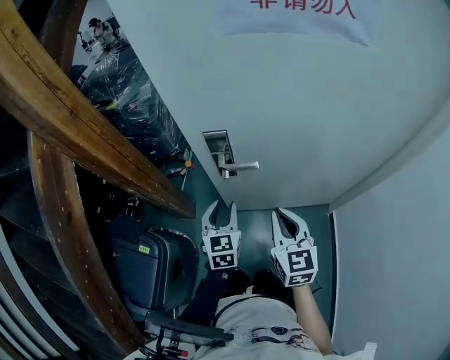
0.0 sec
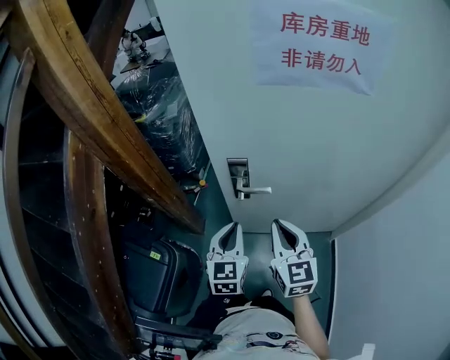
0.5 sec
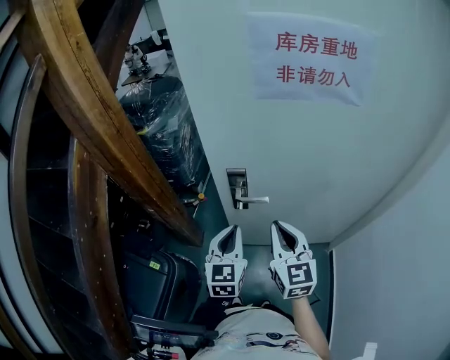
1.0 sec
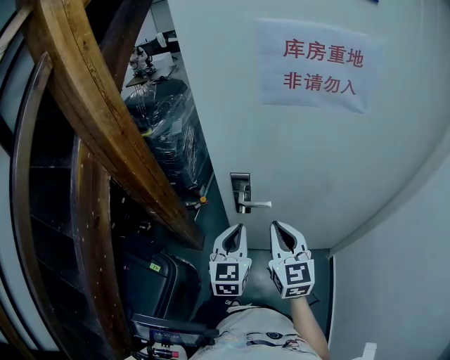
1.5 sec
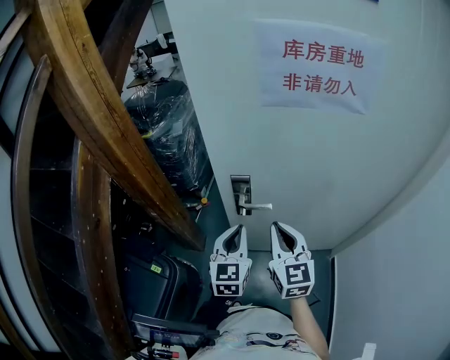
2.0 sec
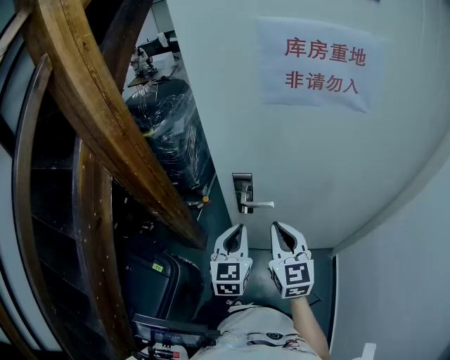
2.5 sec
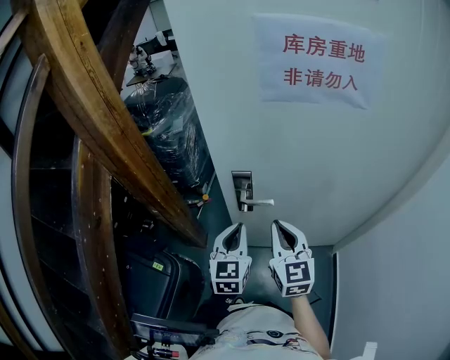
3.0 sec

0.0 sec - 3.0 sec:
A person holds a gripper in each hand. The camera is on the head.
0.0 sec - 1.5 sec: The grippers both shift upward by approximately 15 cm. The left gripper closes up.
1.5 sec - 3.0 sec: Neither gripper changes place.

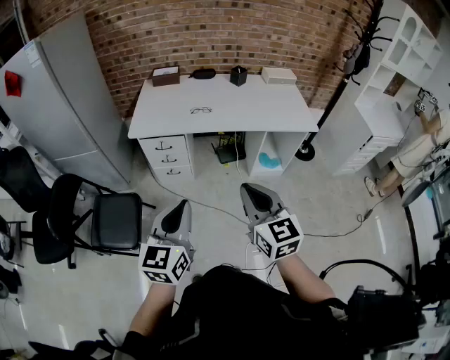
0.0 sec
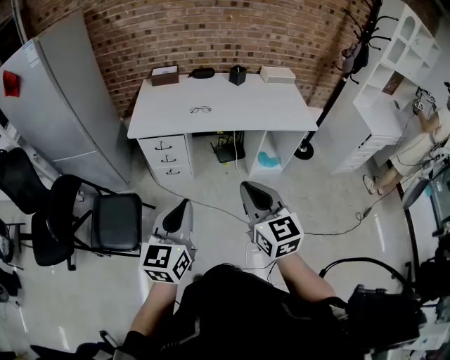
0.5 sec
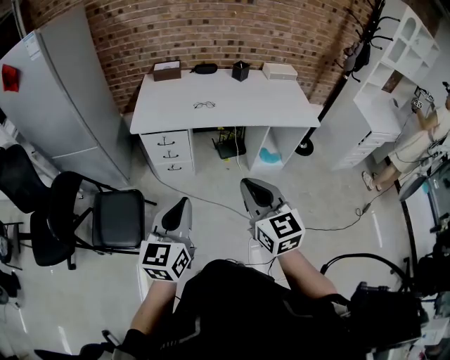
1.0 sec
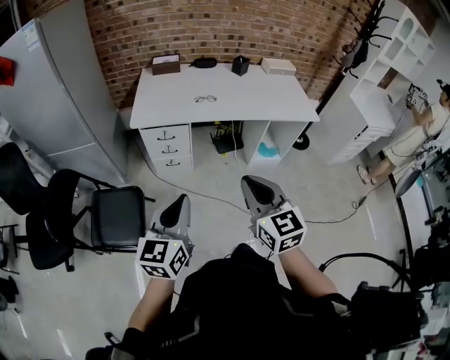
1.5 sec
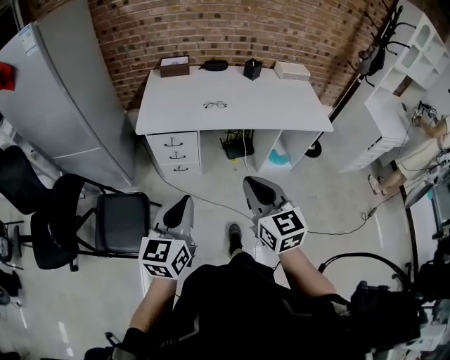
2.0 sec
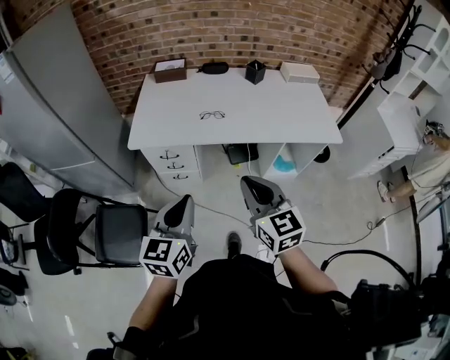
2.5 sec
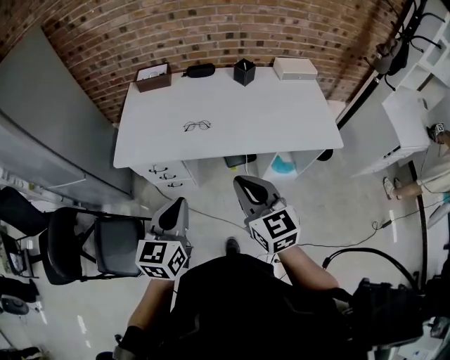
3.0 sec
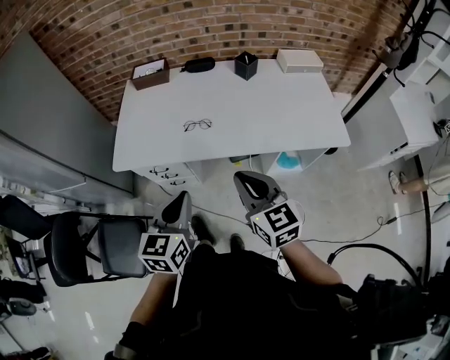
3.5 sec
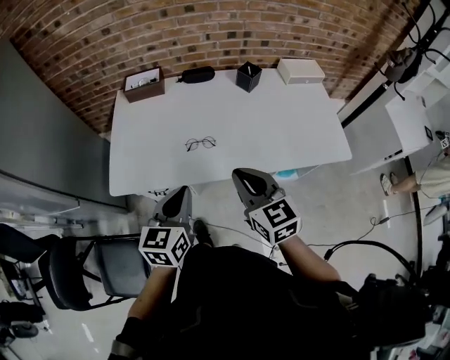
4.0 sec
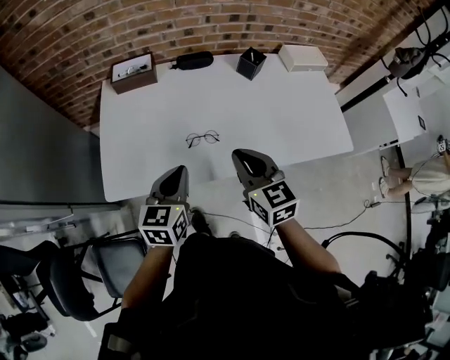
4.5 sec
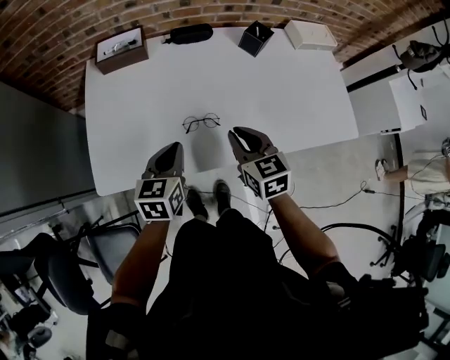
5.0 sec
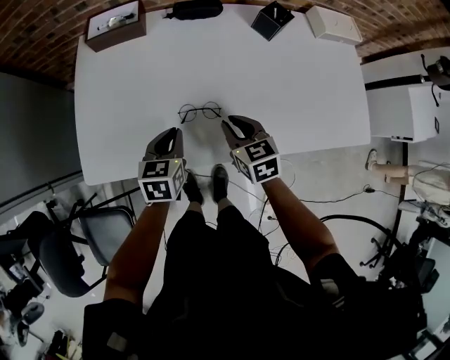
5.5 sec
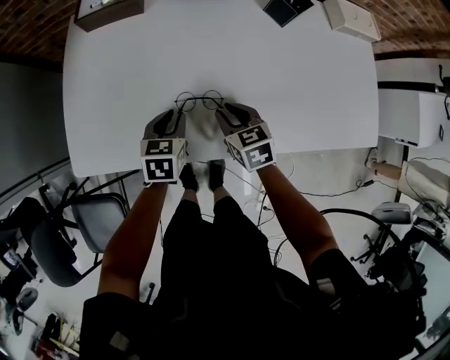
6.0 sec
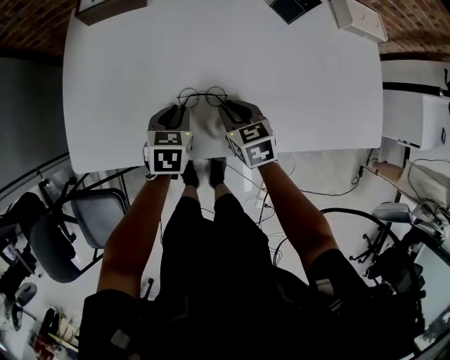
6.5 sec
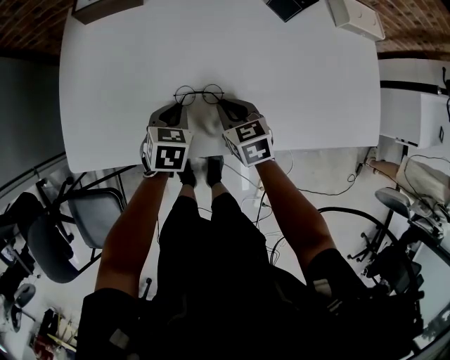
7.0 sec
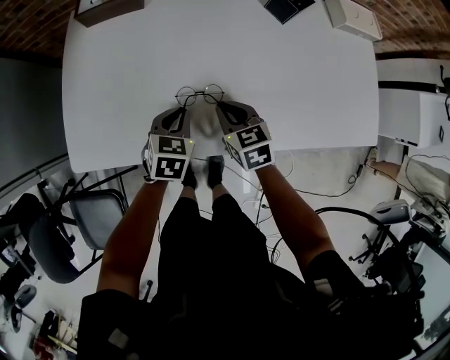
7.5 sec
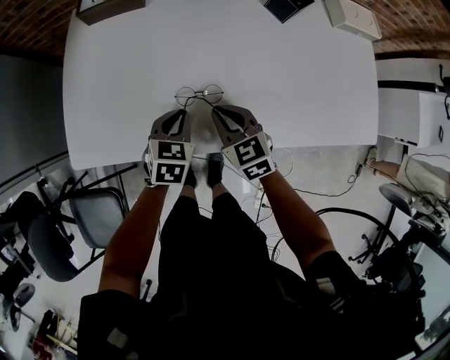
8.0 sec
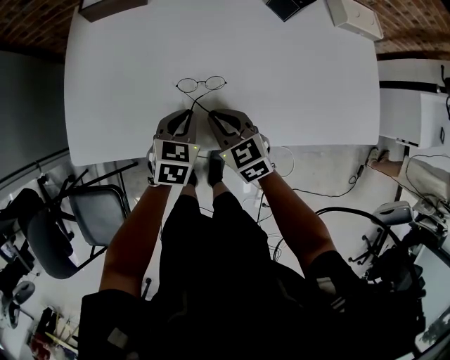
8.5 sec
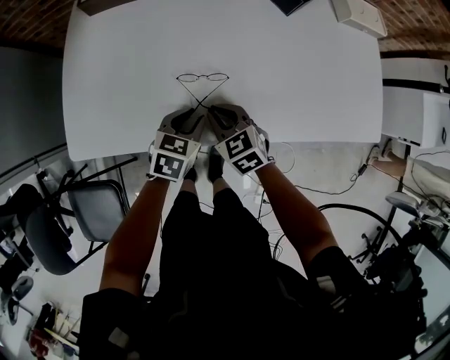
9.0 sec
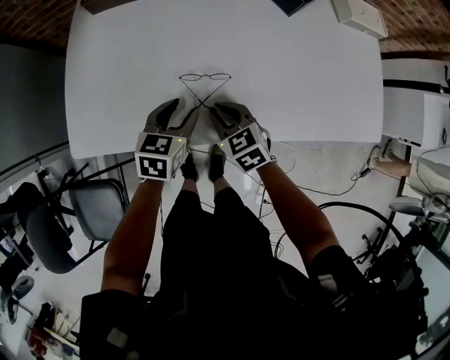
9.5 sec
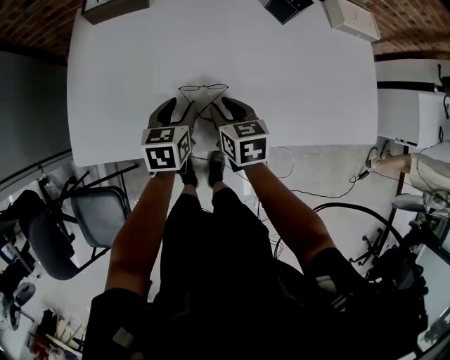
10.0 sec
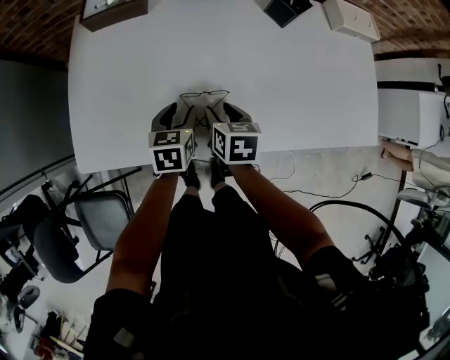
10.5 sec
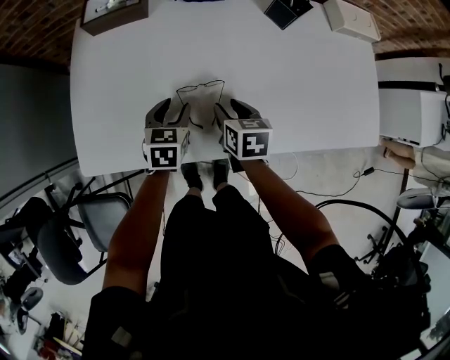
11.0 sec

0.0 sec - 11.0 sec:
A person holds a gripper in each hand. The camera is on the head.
0.0 sec - 2.0 sec: Both grippers move to the left and forward, approximately 10 cm.
2.0 sec - 3.5 sec: Both grippers travel together forward and to the right, about 30 cm.
3.5 sec - 5.5 sec: Both grippers travel together forward and downward, roughly 35 cm. The right gripper changes its angle by some 30 degrees, while the left gripper rotates about 20 degrees.
5.5 sec - 7.5 sec: Both grippers travel together downward, about 5 cm.
7.5 sec - 9.0 sec: The left gripper shifts by roughly 5 cm. The right gripper moves roughly 5 cm.
9.0 sec - 11.0 sec: The right gripper goes approximately 5 cm forward, turns by approximately 40 degrees, and opens up, while the left gripper moves forward and to the left, some 10 cm, and opens its fingers.

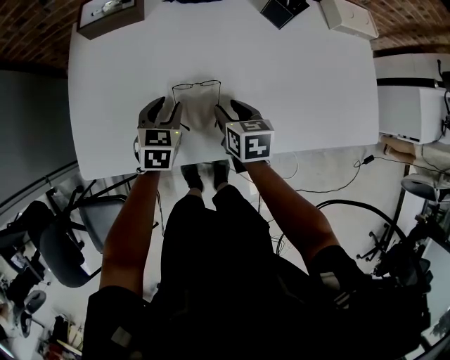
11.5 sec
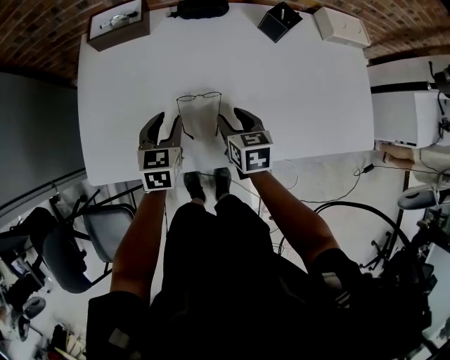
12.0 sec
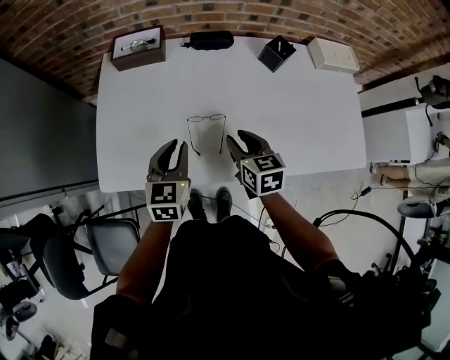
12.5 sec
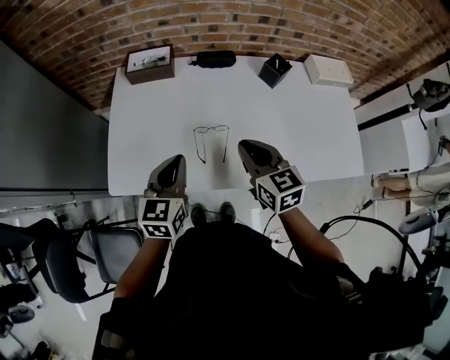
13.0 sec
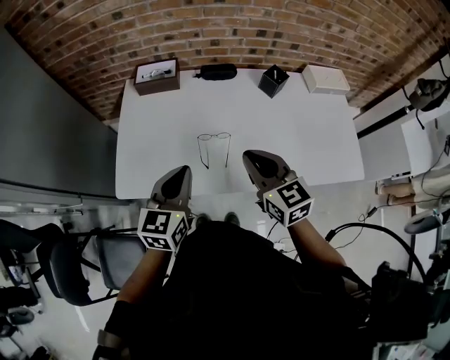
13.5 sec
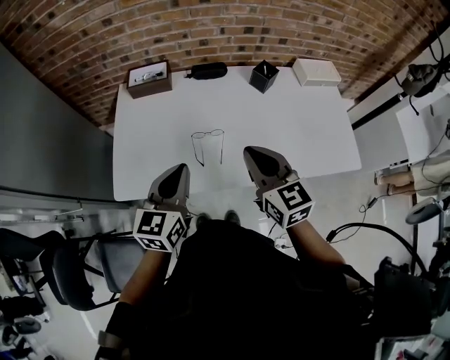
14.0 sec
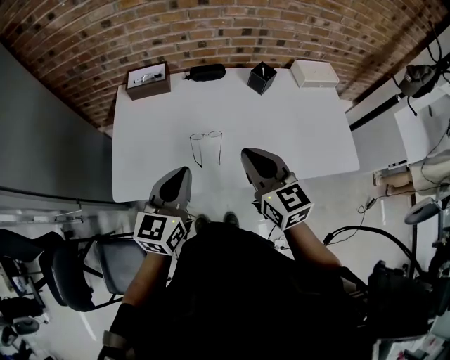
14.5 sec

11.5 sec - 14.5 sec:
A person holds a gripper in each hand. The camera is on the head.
11.5 sec - 13.0 sec: The right gripper moves upward, roughly 20 cm, swivels about 30 degrees, and closes up; the left gripper heads upward and backward, covering some 25 cm, rotates some 30 degrees, and closes its fingers.
13.0 sec - 14.5 sec: The two grippers go some 10 cm upward and backward.

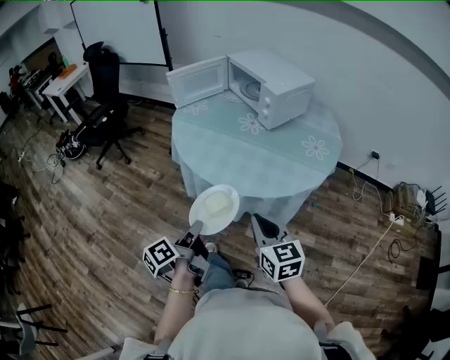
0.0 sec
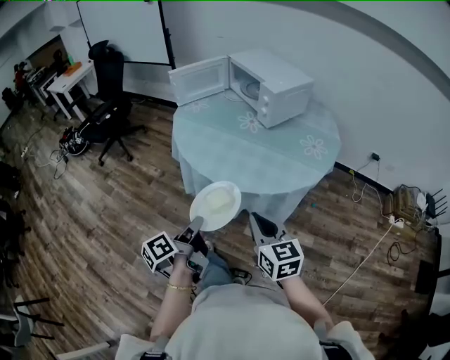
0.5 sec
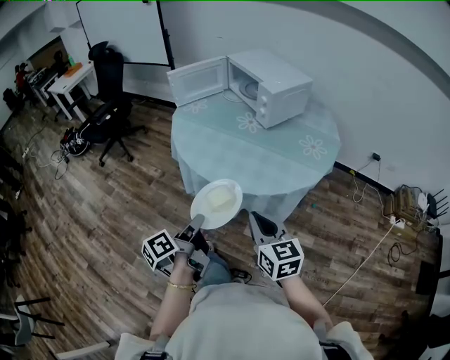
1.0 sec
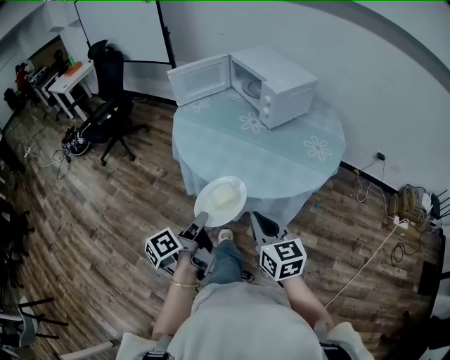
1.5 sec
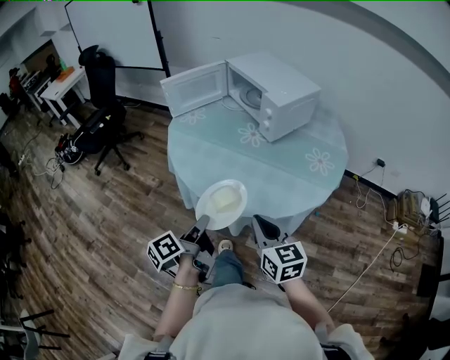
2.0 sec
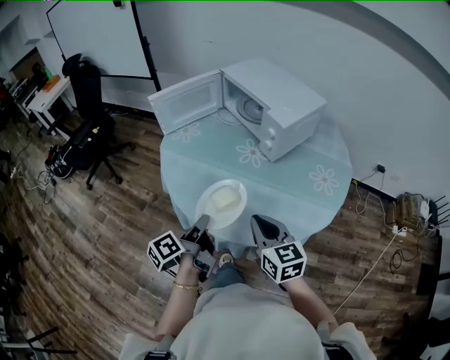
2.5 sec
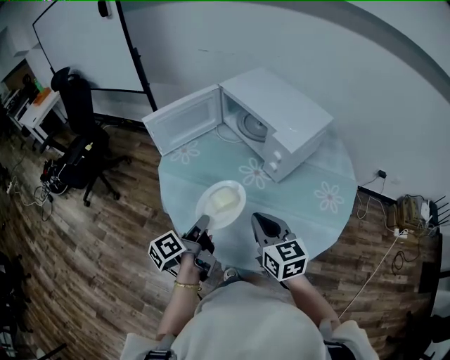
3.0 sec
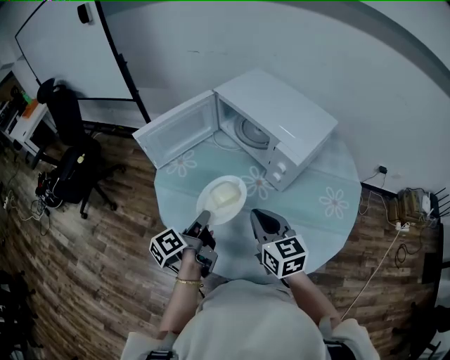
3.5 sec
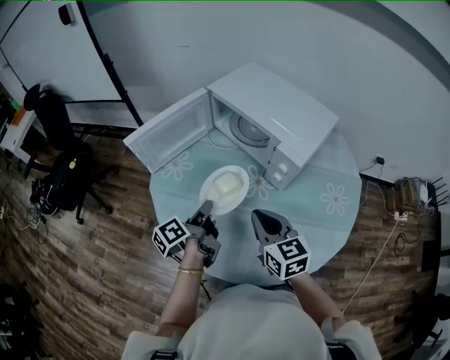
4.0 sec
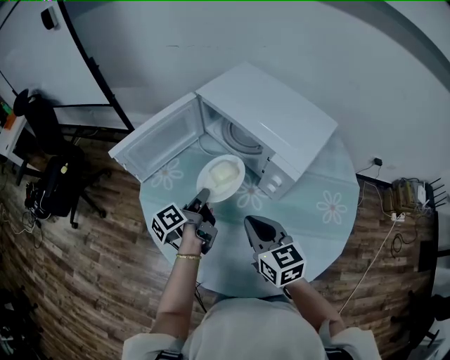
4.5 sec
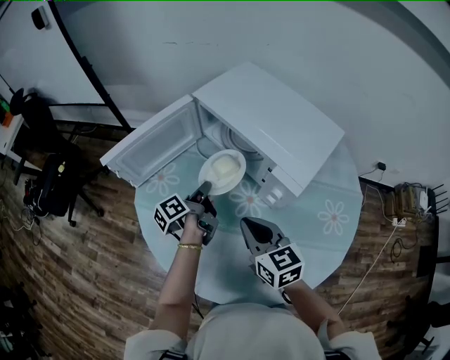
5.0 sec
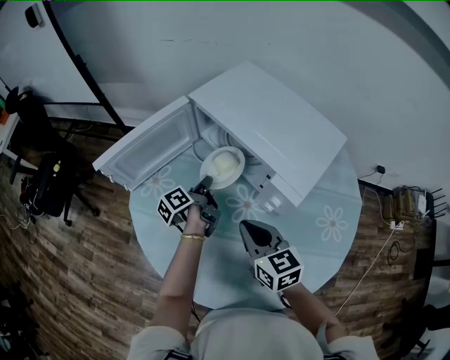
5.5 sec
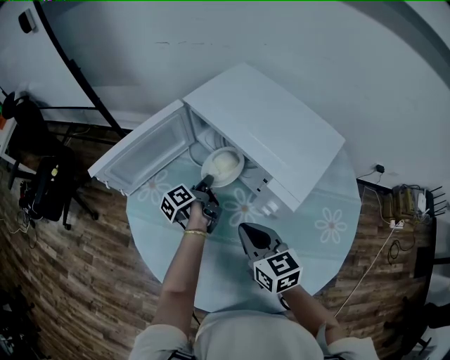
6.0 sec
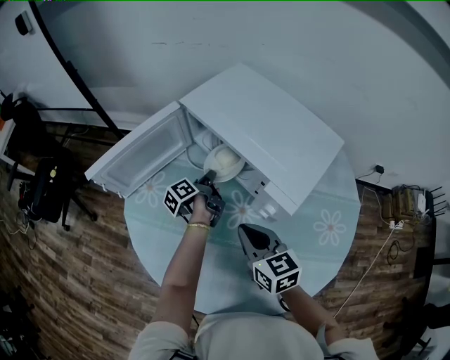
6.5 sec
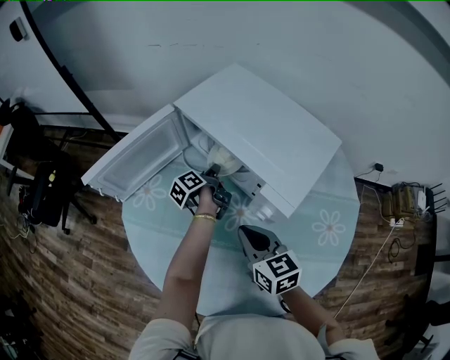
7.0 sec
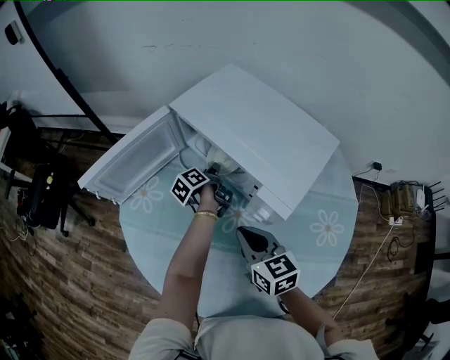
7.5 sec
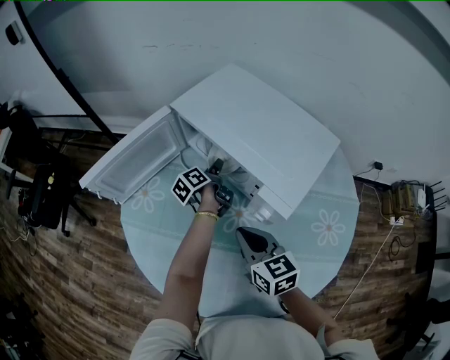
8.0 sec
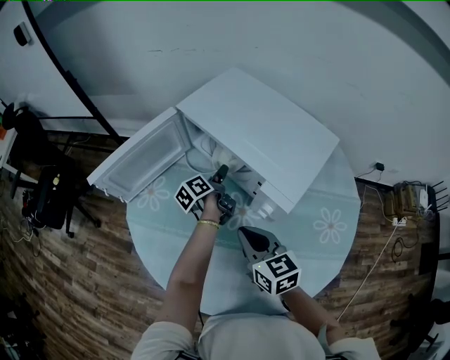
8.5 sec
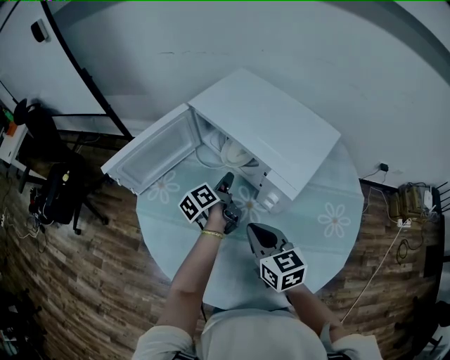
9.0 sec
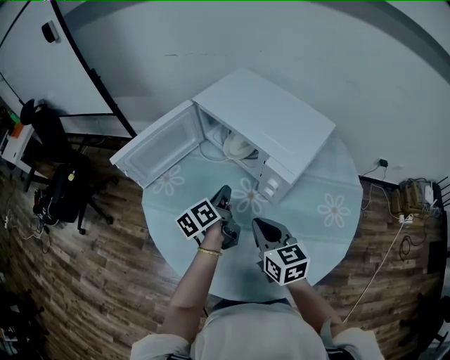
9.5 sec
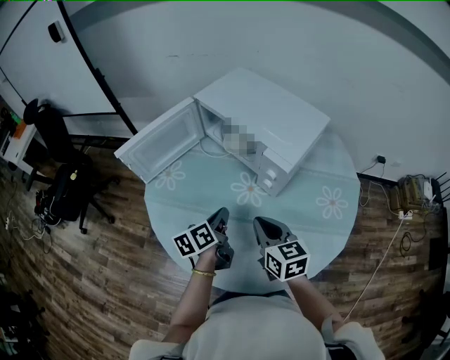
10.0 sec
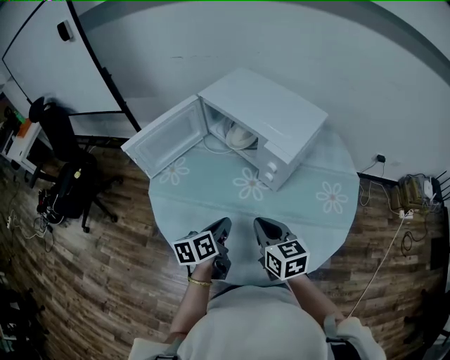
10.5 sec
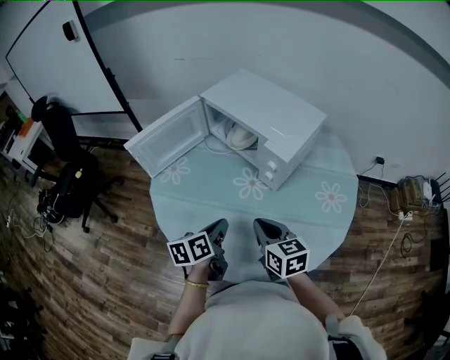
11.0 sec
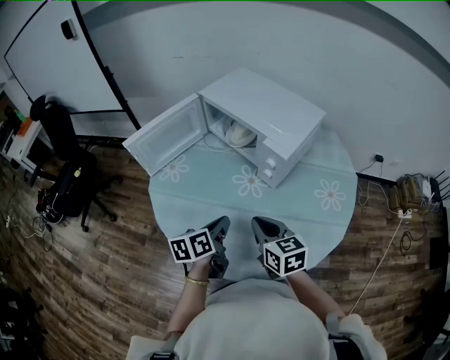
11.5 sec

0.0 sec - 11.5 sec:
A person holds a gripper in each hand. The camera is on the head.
0.0 sec - 2.0 sec: The right gripper shifts by about 10 cm.
2.0 sec - 4.0 sec: The right gripper moves roughly 35 cm.
4.0 sec - 6.0 sec: The right gripper moves approximately 10 cm.
7.5 sec - 9.5 sec: The right gripper moves approximately 10 cm.
9.5 sec - 11.5 sec: The right gripper ends up approximately 10 cm from where it was.
